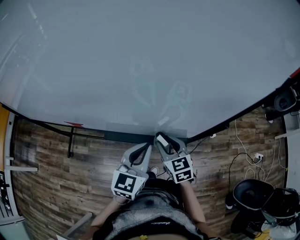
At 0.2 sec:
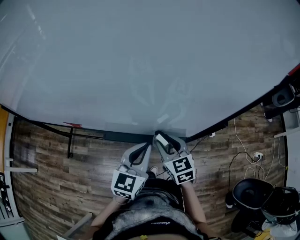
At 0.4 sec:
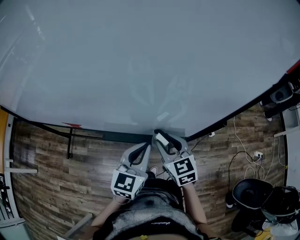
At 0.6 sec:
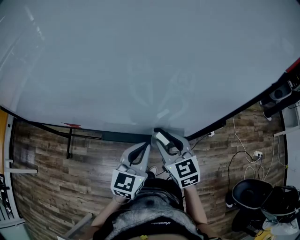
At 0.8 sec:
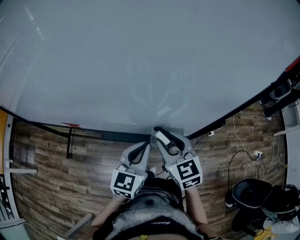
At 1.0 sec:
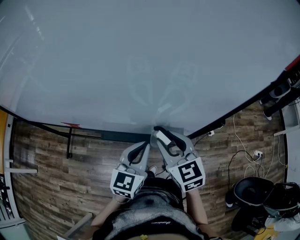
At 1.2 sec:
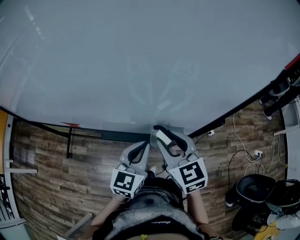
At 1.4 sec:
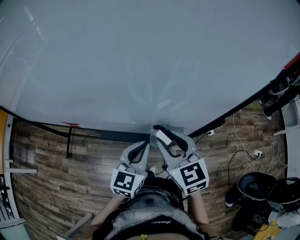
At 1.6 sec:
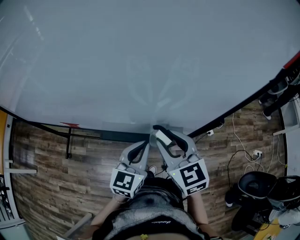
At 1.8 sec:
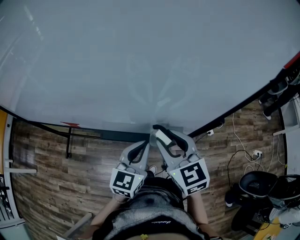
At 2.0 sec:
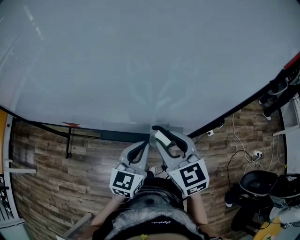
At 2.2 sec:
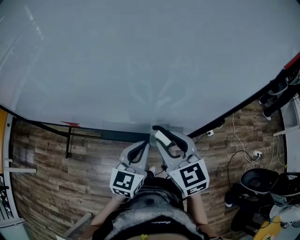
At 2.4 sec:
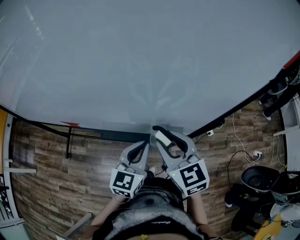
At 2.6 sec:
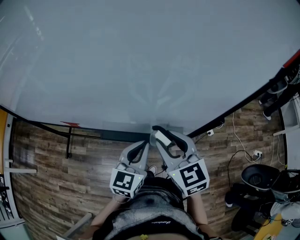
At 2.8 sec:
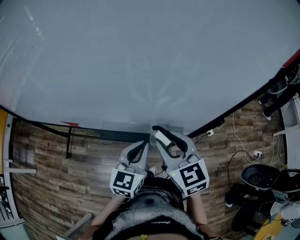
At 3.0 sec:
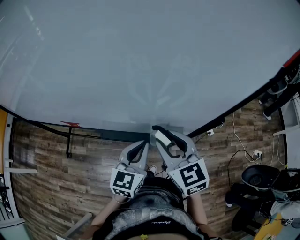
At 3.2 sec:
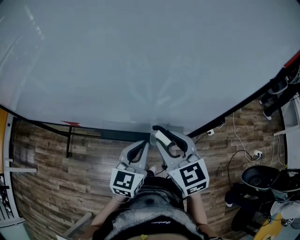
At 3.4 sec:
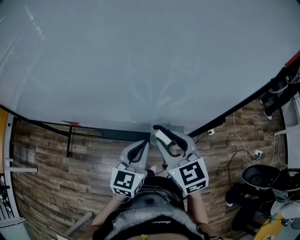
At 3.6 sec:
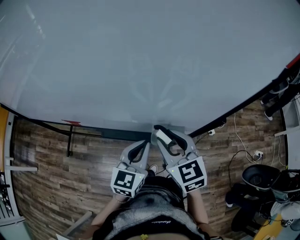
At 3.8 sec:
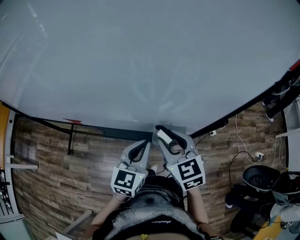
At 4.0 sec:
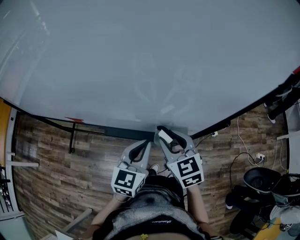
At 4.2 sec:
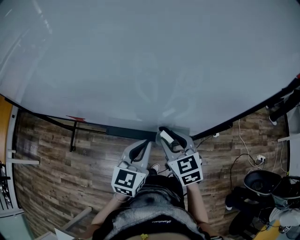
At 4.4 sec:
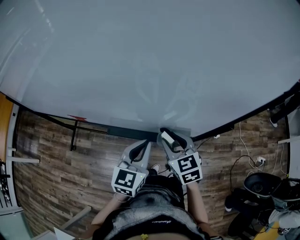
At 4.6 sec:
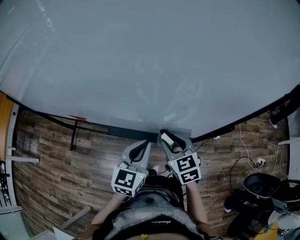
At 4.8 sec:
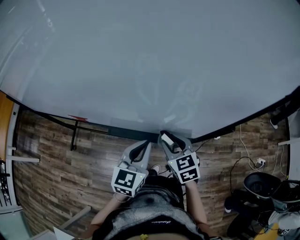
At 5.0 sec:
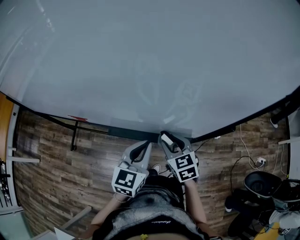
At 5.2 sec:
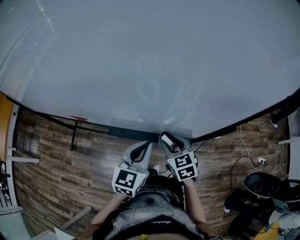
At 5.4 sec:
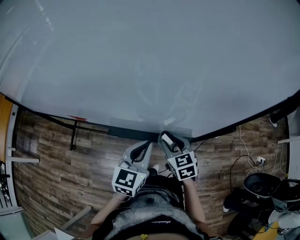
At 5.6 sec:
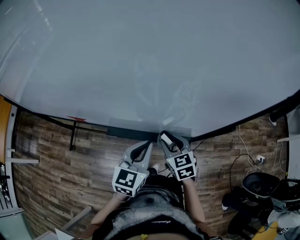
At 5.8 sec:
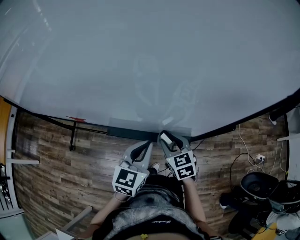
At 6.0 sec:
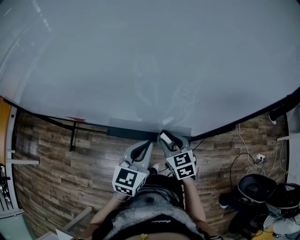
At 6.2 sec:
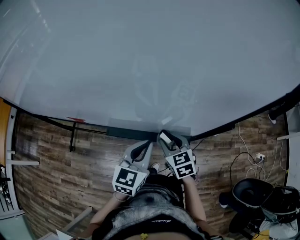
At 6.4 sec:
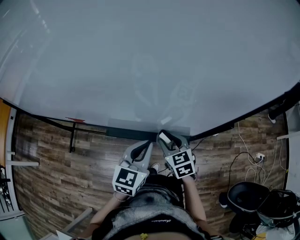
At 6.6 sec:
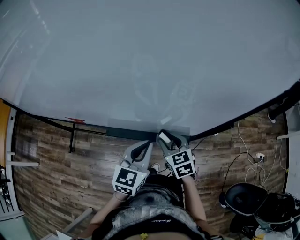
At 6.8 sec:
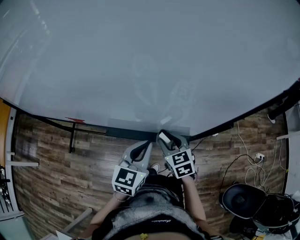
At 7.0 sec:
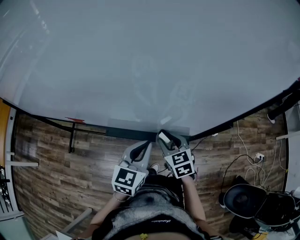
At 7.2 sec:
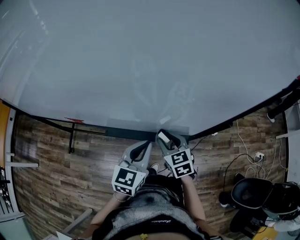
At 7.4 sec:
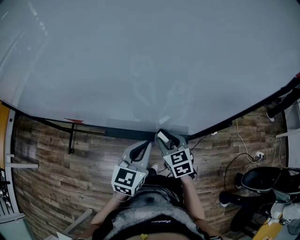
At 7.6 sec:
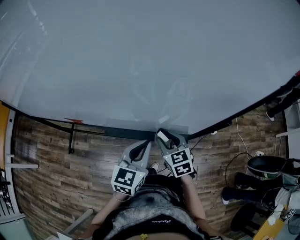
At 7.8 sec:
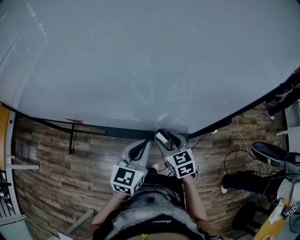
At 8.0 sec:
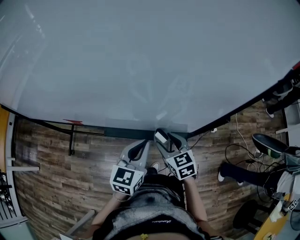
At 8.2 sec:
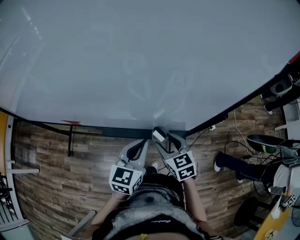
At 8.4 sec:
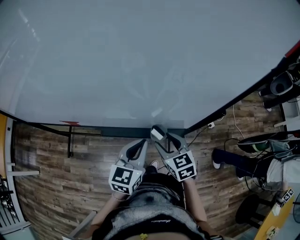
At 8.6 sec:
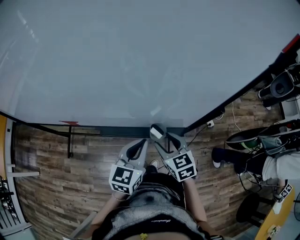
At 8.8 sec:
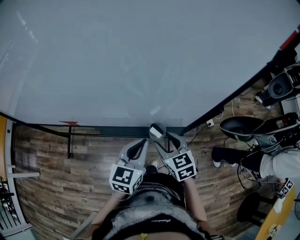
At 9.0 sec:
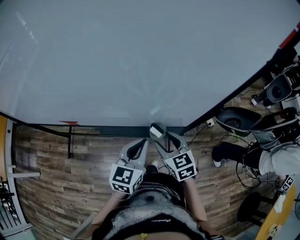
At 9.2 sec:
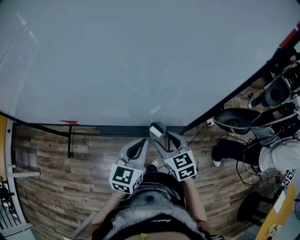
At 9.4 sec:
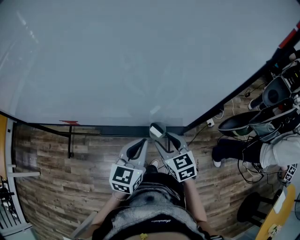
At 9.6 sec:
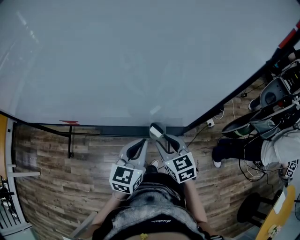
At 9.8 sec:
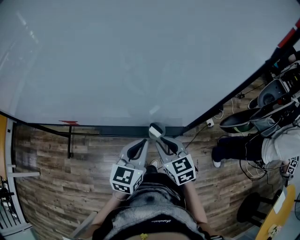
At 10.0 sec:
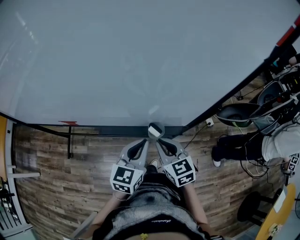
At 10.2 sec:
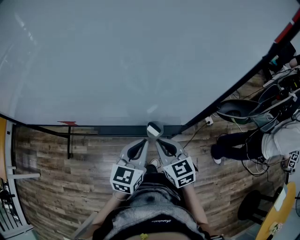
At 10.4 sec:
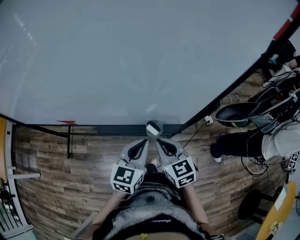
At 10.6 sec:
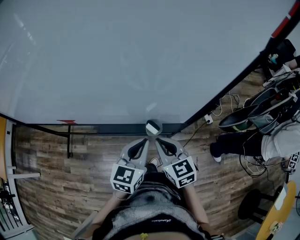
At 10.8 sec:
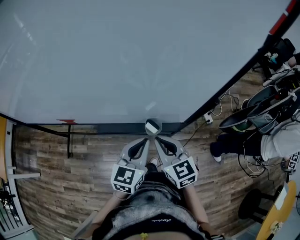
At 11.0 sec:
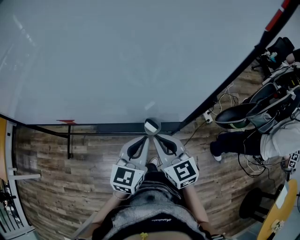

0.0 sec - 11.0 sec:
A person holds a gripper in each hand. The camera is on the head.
0.0 sec - 1.6 sec: The right gripper moves upward, roughly 15 cm.
1.6 sec - 3.2 sec: The two grippers keep their place.
3.2 sec - 4.8 sec: The right gripper travels downward by approximately 10 cm.
4.8 sec - 9.4 sec: There are only small adjustments of the grippers.
9.4 sec - 11.0 sec: The right gripper travels upward by some 5 cm, and closes.

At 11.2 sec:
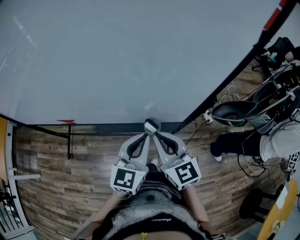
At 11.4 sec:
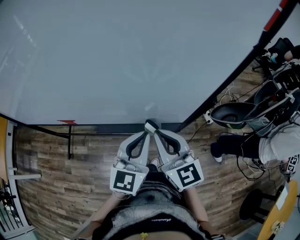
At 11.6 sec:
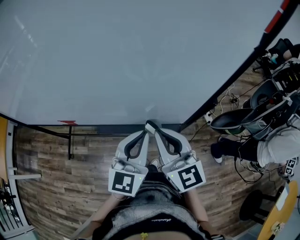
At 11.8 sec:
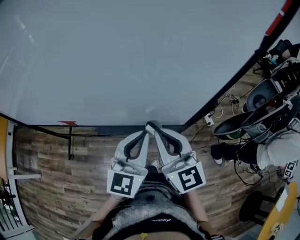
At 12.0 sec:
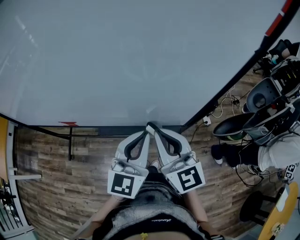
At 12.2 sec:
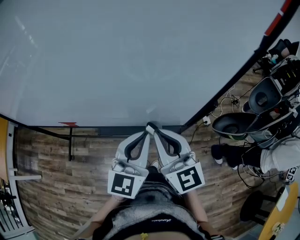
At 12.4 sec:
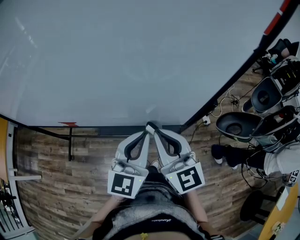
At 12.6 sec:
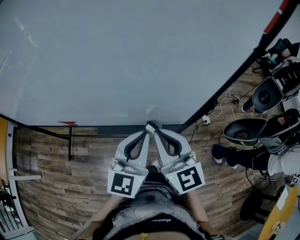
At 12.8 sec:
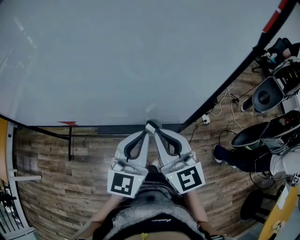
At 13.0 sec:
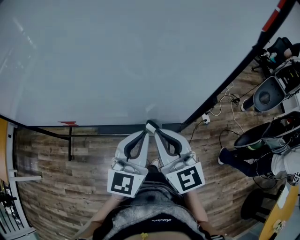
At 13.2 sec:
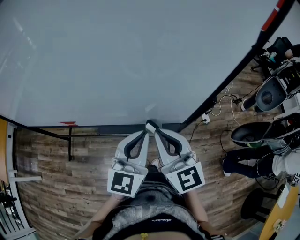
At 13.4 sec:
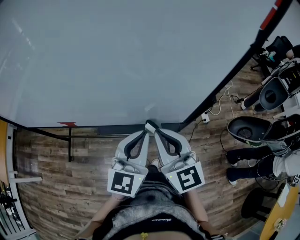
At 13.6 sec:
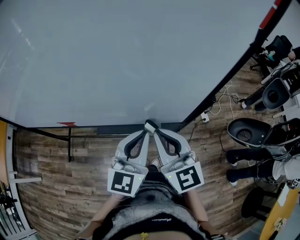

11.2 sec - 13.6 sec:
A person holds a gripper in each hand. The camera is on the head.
11.2 sec - 12.4 sec: The grippers both shift upward by some 5 cm.
12.4 sec - 13.6 sec: Neither gripper changes place.

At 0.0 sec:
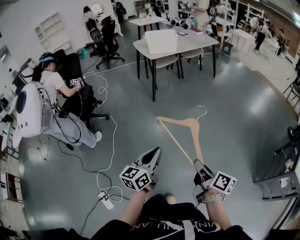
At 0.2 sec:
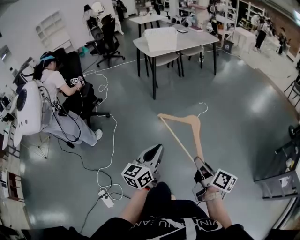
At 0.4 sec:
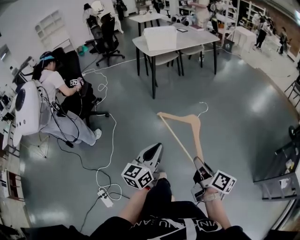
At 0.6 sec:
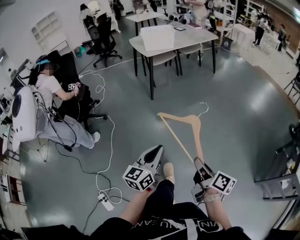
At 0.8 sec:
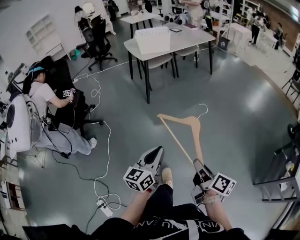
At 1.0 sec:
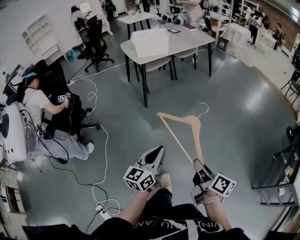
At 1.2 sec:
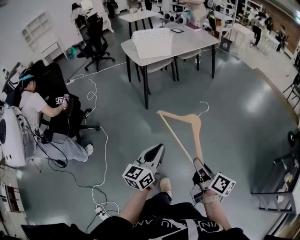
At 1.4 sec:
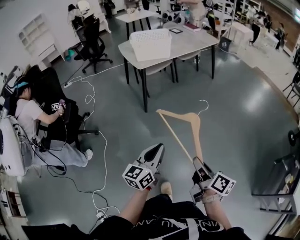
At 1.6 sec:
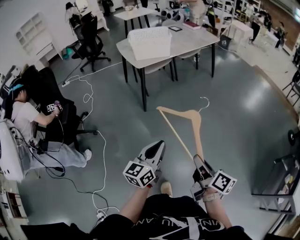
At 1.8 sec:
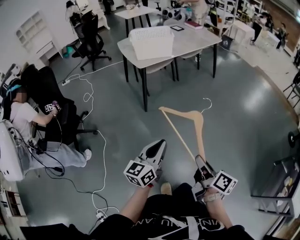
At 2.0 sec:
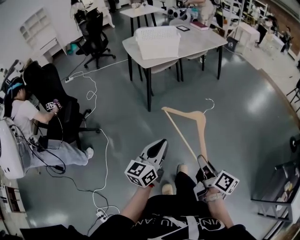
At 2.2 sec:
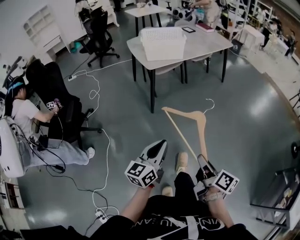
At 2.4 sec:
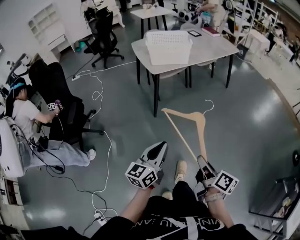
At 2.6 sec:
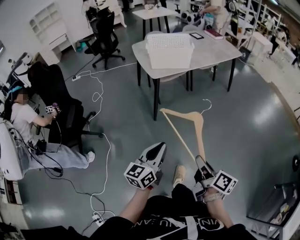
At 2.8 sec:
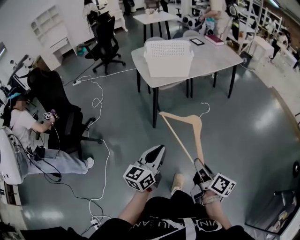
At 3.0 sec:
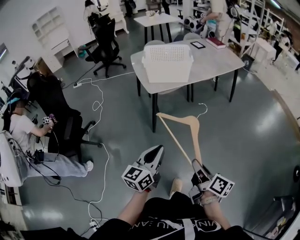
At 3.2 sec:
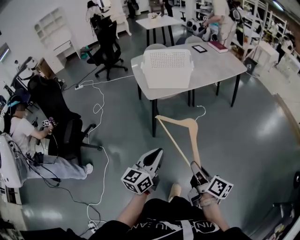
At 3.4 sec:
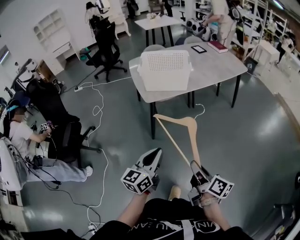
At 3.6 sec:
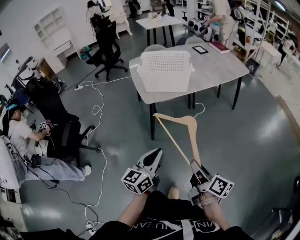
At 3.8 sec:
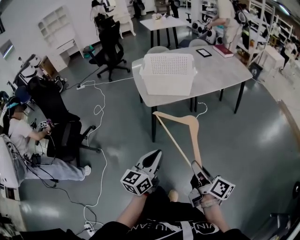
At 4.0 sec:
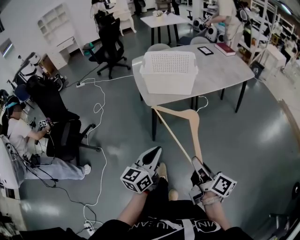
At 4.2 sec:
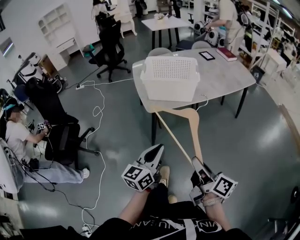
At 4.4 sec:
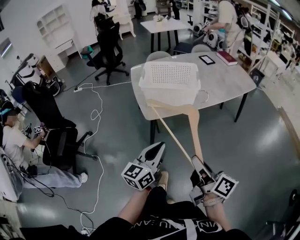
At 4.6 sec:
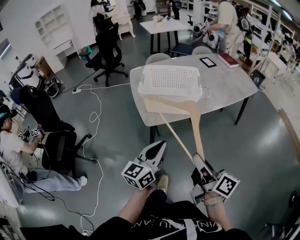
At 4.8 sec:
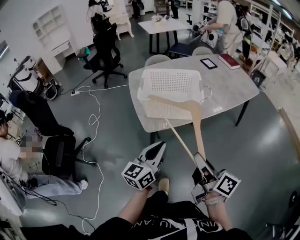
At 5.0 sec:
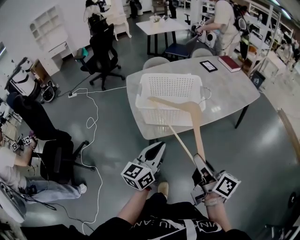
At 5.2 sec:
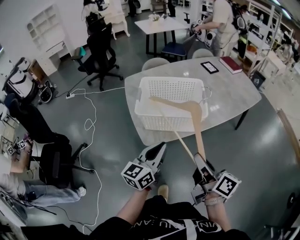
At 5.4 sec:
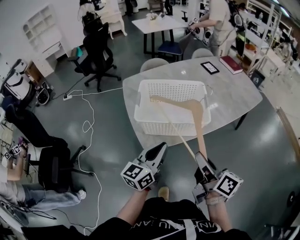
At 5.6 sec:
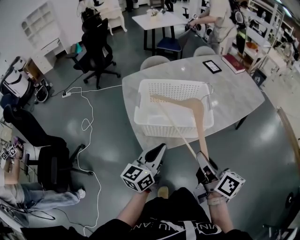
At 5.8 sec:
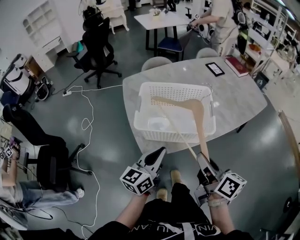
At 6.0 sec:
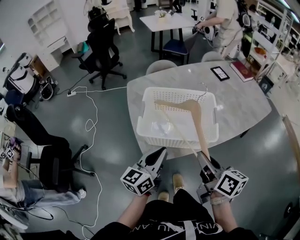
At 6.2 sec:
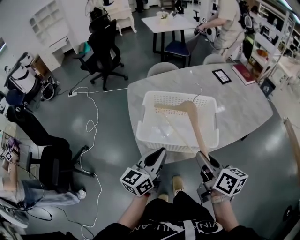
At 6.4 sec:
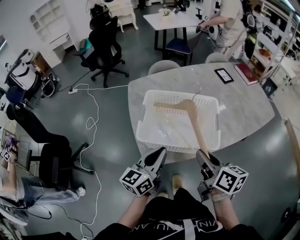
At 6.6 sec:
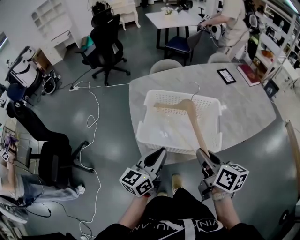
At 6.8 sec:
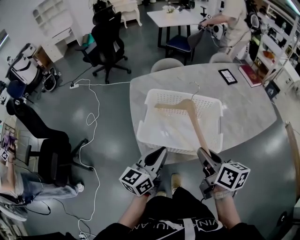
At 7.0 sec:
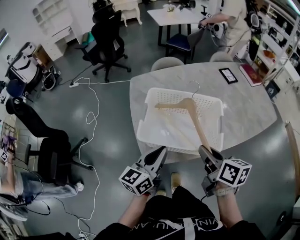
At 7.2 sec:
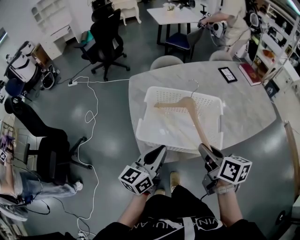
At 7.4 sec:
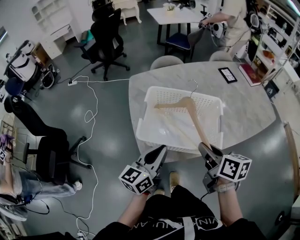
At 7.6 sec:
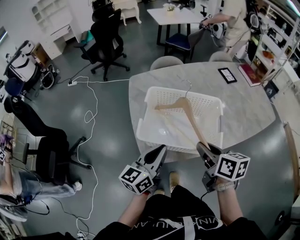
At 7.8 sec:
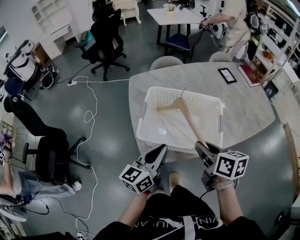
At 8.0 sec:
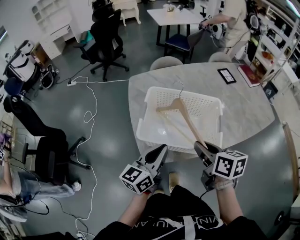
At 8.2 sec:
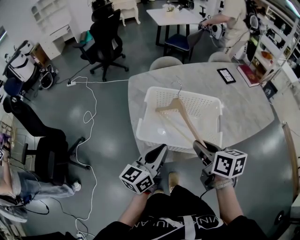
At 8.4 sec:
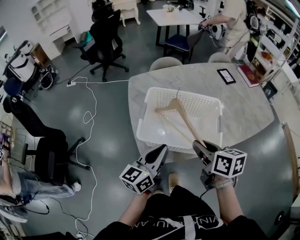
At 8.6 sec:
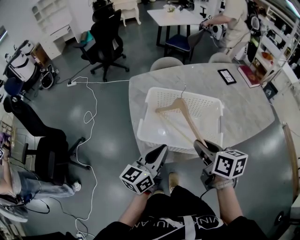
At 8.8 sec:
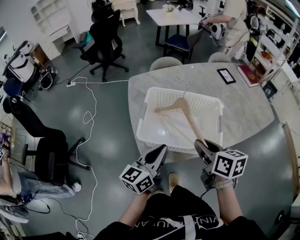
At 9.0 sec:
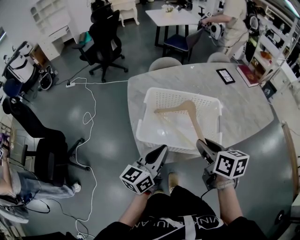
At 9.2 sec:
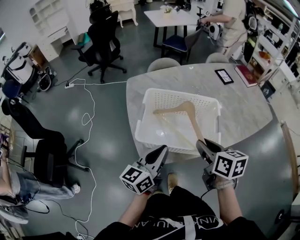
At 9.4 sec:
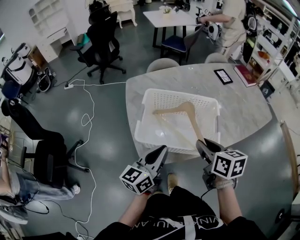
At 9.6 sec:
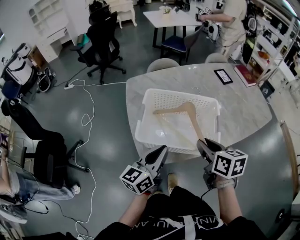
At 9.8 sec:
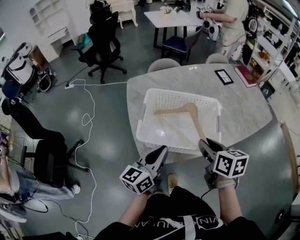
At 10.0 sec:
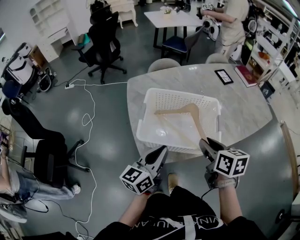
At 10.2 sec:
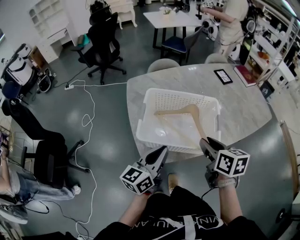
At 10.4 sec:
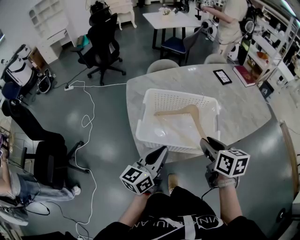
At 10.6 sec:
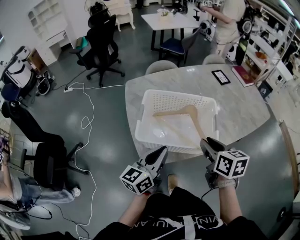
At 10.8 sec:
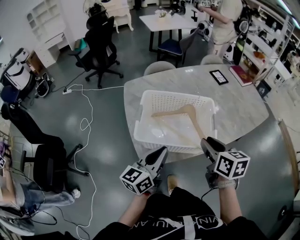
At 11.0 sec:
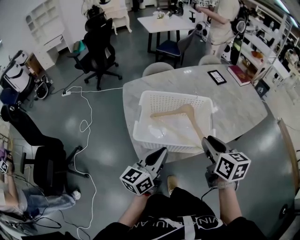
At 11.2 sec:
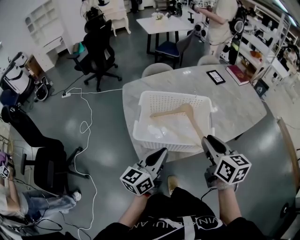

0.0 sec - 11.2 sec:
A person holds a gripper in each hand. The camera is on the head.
0.0 sec - 1.6 sec: Both grippers travel together forward, some 35 cm.
1.6 sec - 3.2 sec: Both grippers move forward, some 30 cm.
3.2 sec - 4.8 sec: Both grippers move forward, about 30 cm.
4.8 sec - 6.4 sec: Both grippers travel together forward, about 25 cm. The right gripper turns by about 30 degrees.
6.4 sec - 8.0 sec: The grippers make only small movements.
8.0 sec - 9.6 sec: The grippers stay close to where they were, moving slightly.
9.6 sec - 11.2 sec: The right gripper moves roughly 5 cm.
